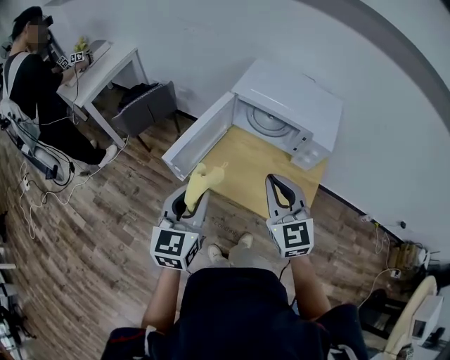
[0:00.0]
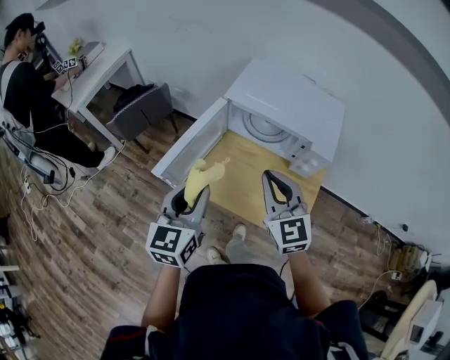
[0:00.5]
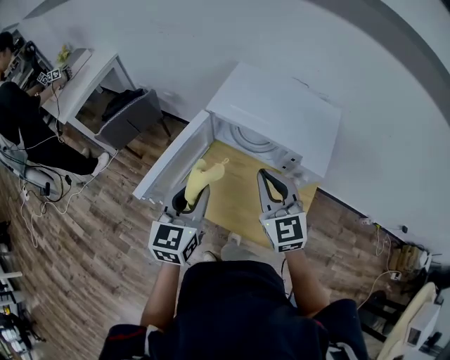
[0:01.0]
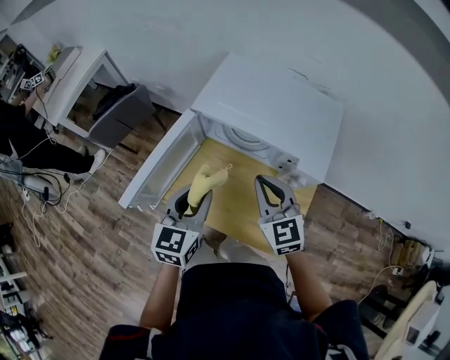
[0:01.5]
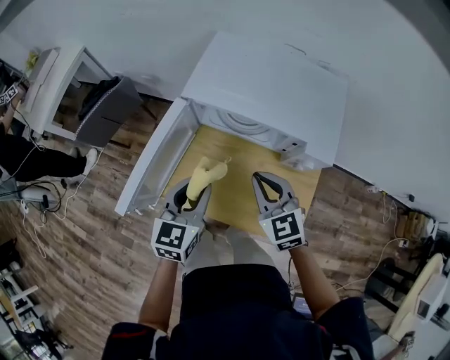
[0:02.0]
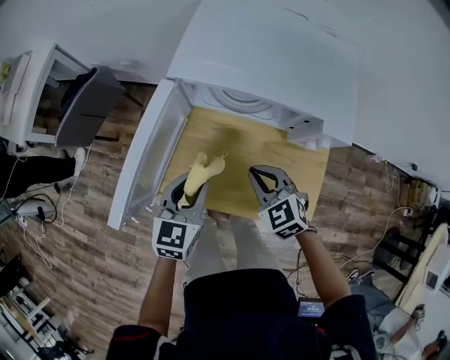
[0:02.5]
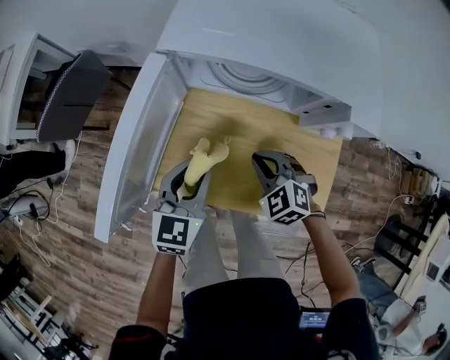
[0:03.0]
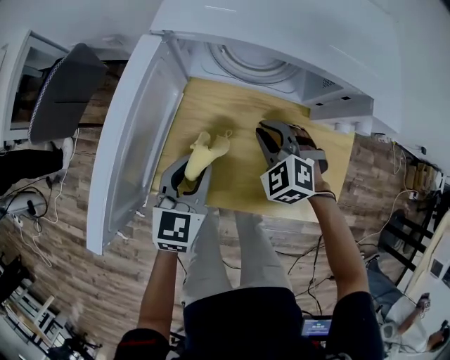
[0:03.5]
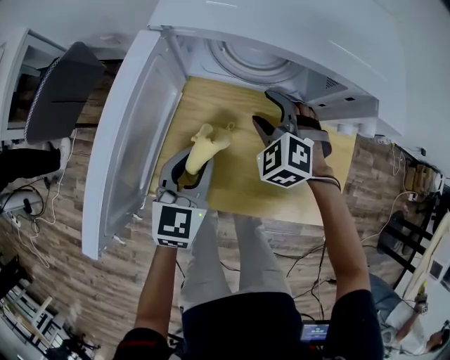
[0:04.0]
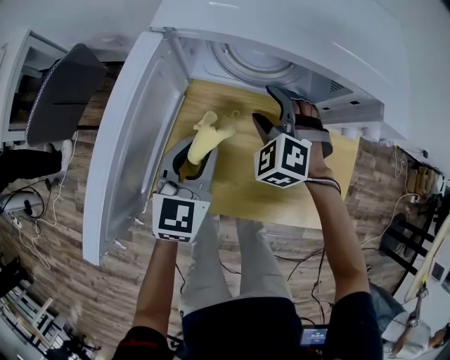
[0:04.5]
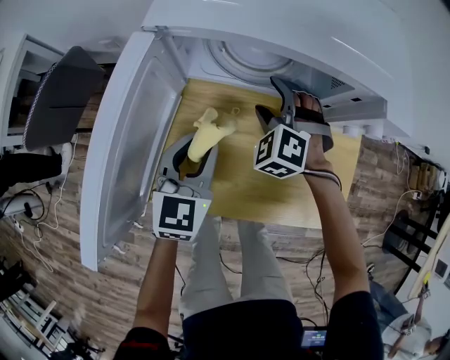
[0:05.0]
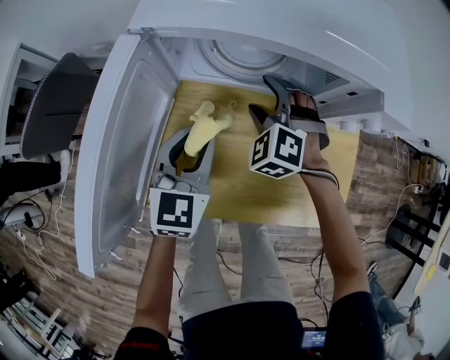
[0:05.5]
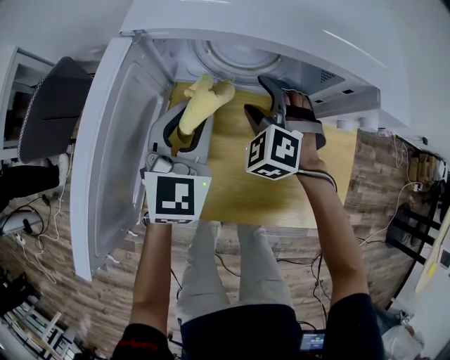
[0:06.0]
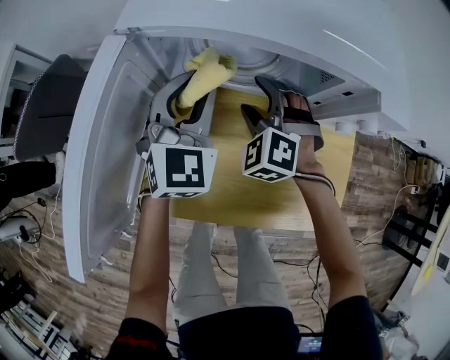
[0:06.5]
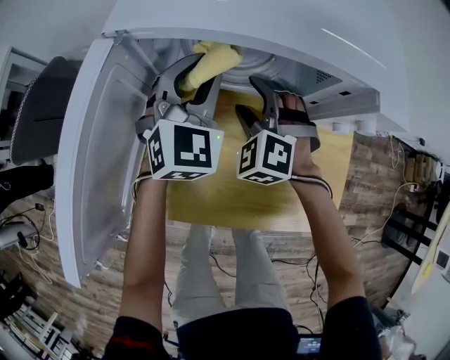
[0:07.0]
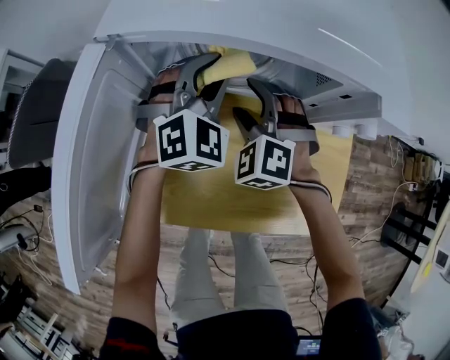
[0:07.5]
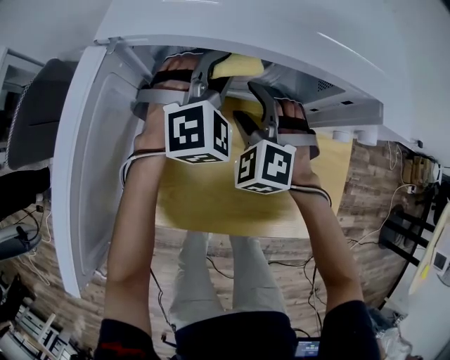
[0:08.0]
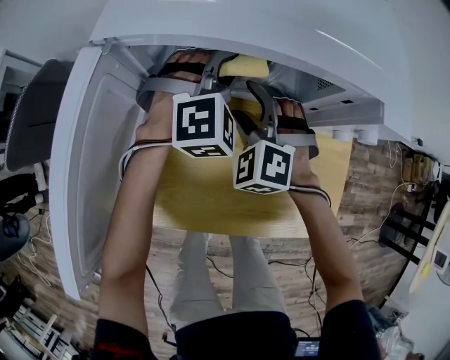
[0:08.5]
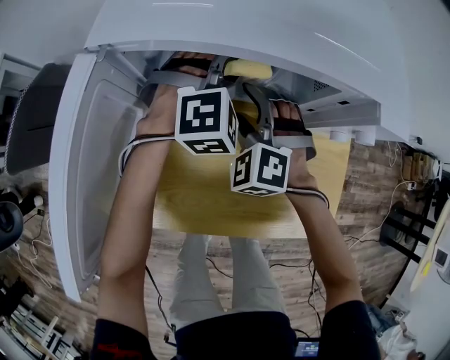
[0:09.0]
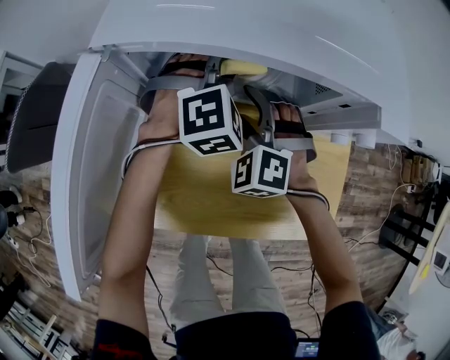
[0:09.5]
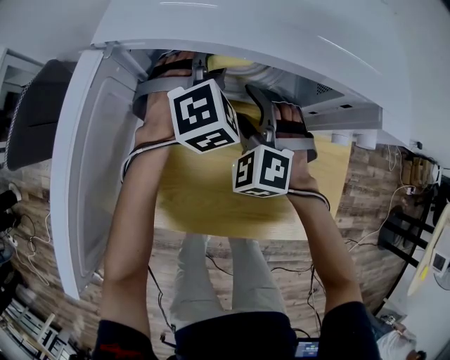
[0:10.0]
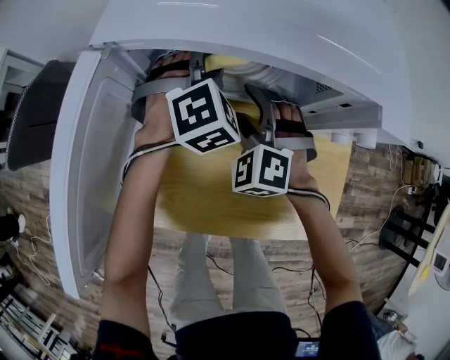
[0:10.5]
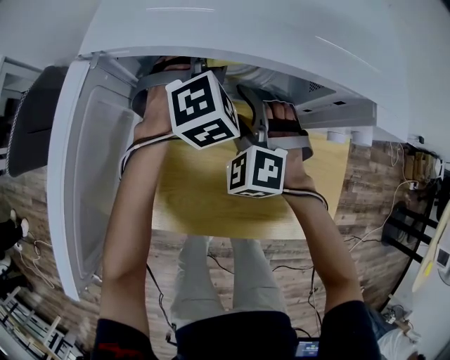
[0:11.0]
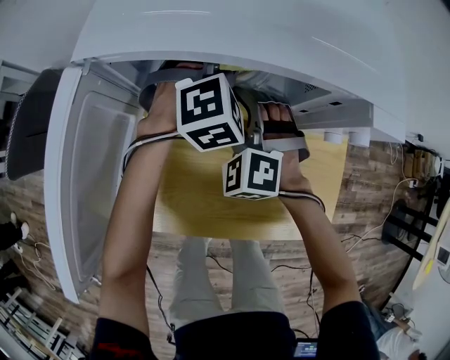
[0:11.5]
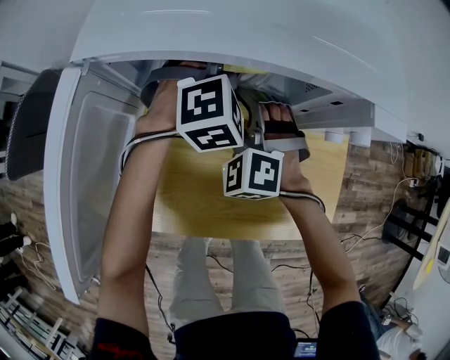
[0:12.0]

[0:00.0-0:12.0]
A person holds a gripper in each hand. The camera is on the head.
0:00.0 to 0:02.0: Both grippers move forward, downward and to the right, some 20 cm.
0:02.0 to 0:04.0: The right gripper shifts some 20 cm downward and forward, swivels about 40 degrees, and opens; the left gripper shifts roughly 15 cm downward.
0:04.0 to 0:06.0: The left gripper shifts approximately 10 cm forward.
0:06.0 to 0:08.0: The left gripper moves forward and to the right, roughly 15 cm, and rolls clockwise, seen from behind, by about 50 degrees.
0:08.0 to 0:10.0: The grippers make only small movements.
0:10.0 to 0:12.0: The left gripper shifts some 5 cm to the right.

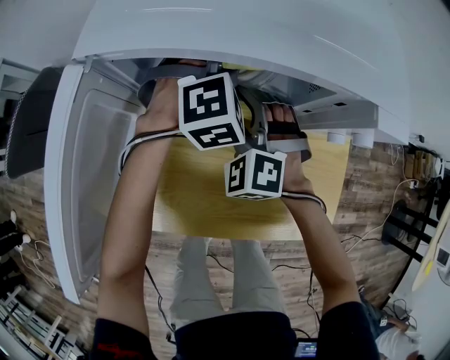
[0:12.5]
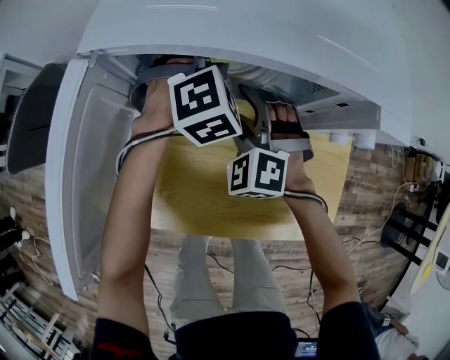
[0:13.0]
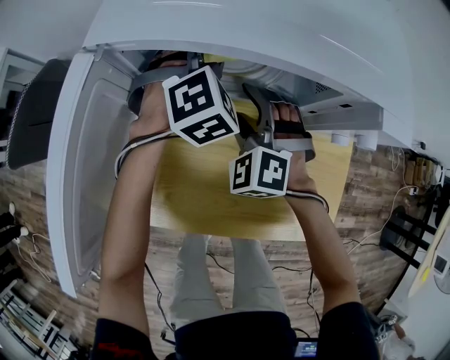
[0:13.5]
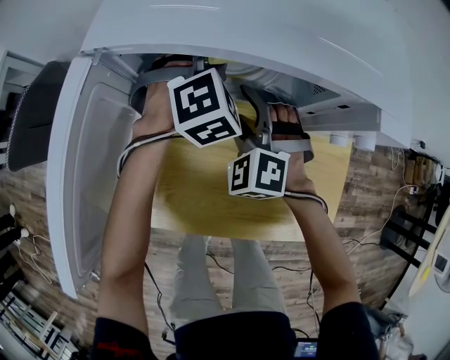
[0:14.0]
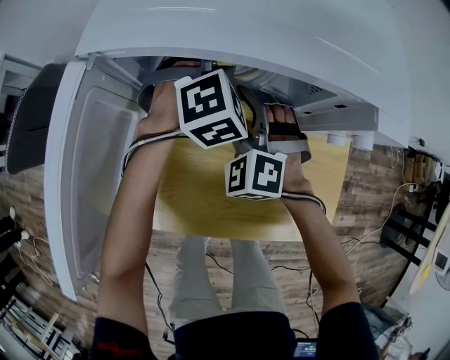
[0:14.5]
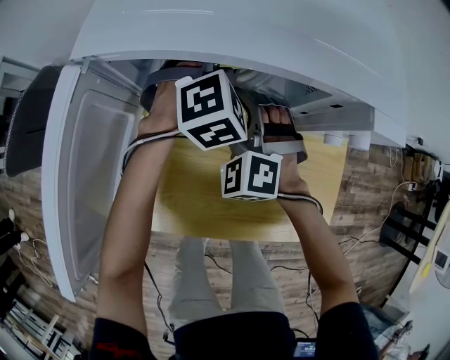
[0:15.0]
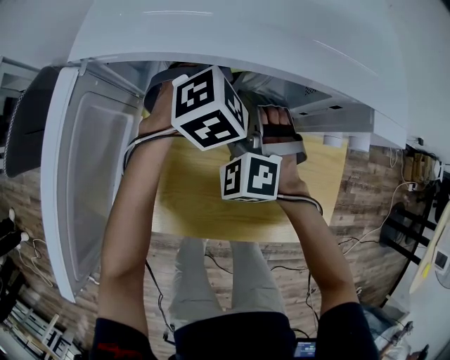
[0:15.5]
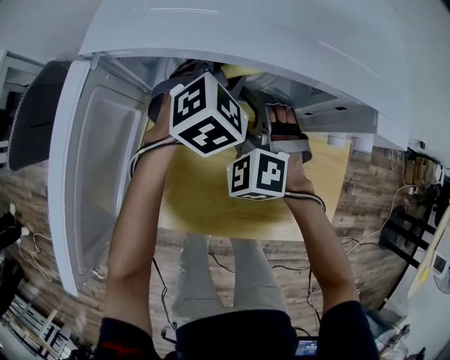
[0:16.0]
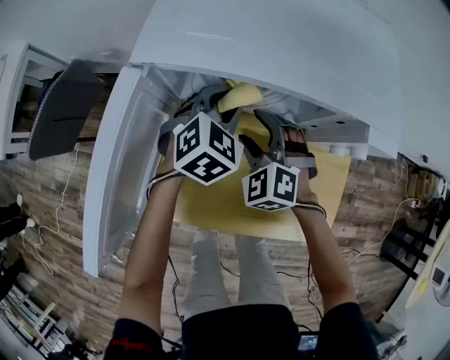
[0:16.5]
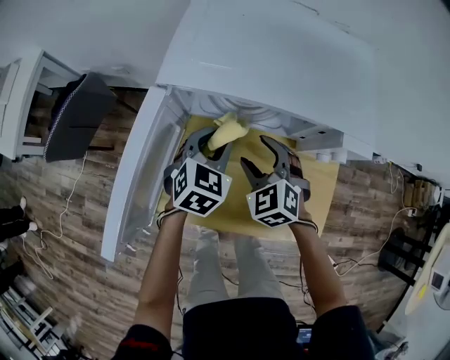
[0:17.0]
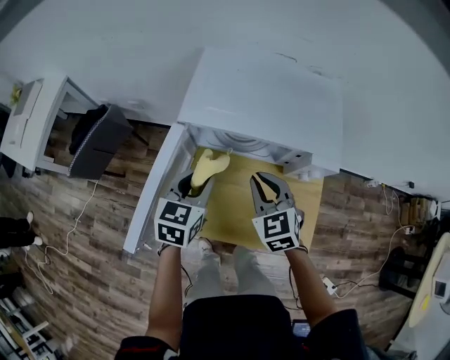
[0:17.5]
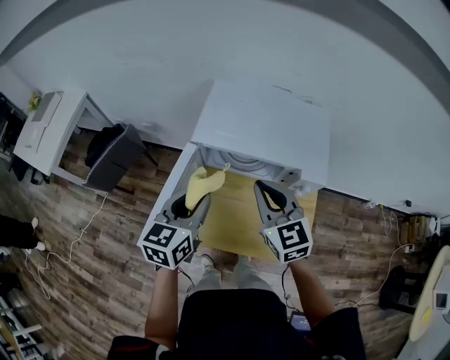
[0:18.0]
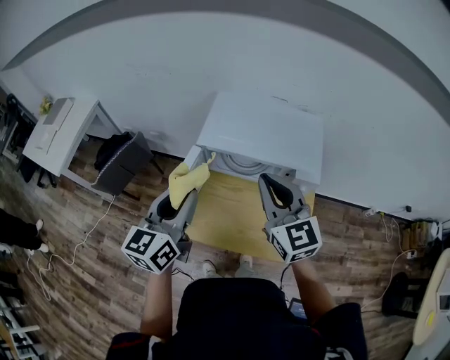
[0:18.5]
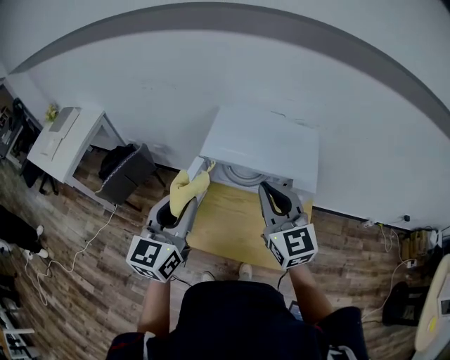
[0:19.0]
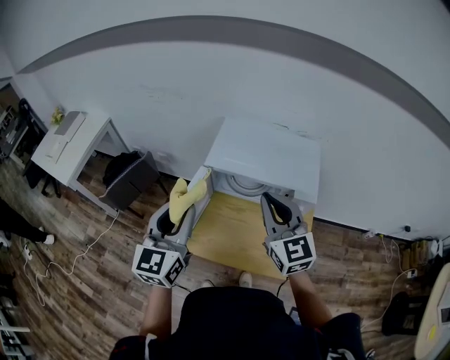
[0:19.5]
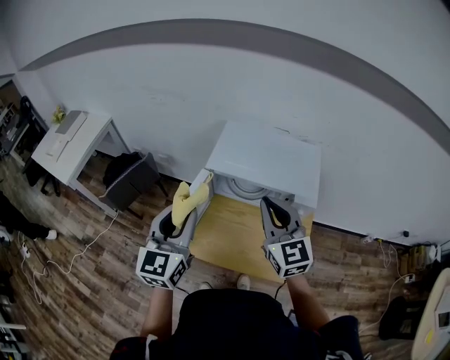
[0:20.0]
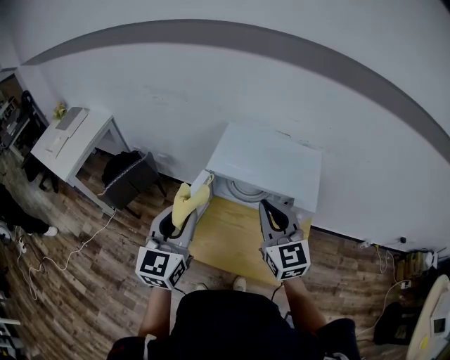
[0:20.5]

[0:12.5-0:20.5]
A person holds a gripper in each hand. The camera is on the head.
0:12.5 to 0:14.5: The grippers make only small movements.
0:14.5 to 0:16.5: The left gripper moves backward, some 5 cm, and turns by roughly 30 degrees.
0:16.5 to 0:18.5: The left gripper heads upward, backward and to the left, covering approximately 40 cm, and angles its fingers upward, by roughly 40 degrees. The right gripper goes about 40 cm upward, tips its fingers upward by about 40 degrees, and closes.
0:18.5 to 0:20.5: The grippers move only a little.

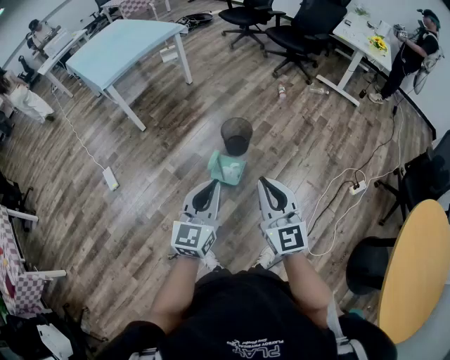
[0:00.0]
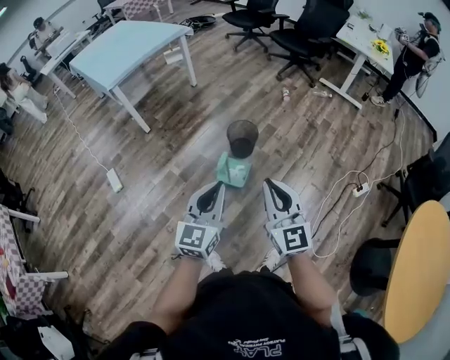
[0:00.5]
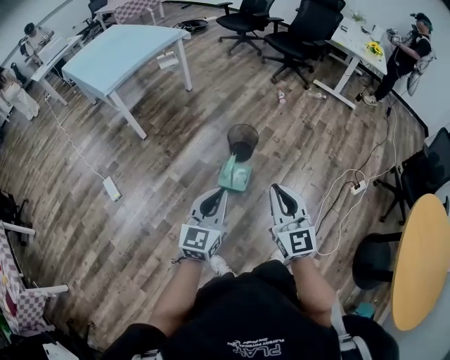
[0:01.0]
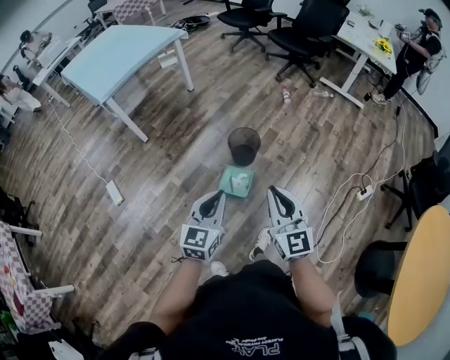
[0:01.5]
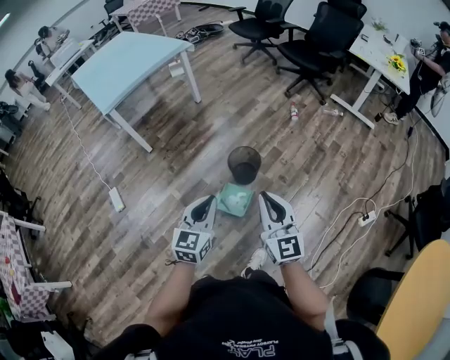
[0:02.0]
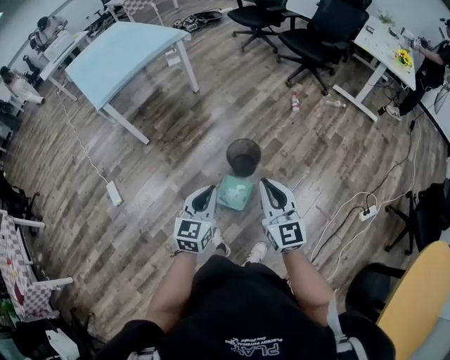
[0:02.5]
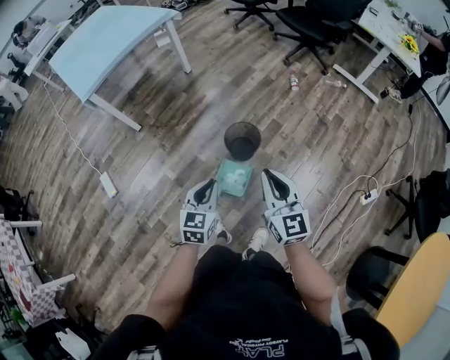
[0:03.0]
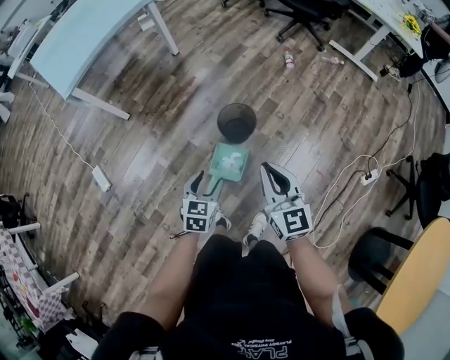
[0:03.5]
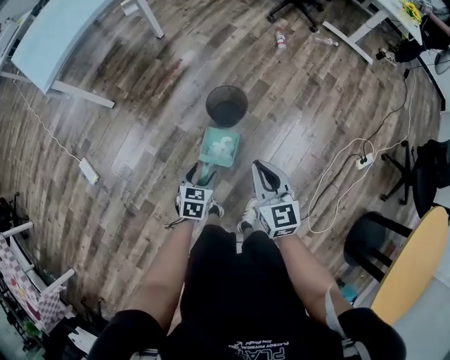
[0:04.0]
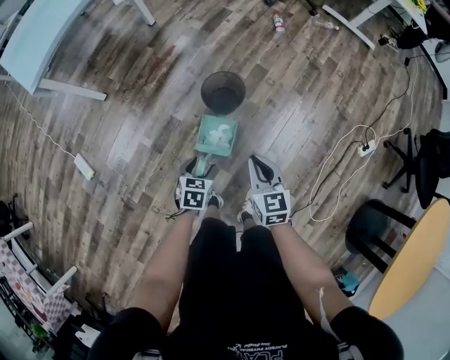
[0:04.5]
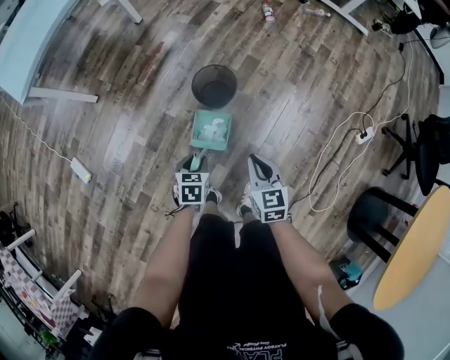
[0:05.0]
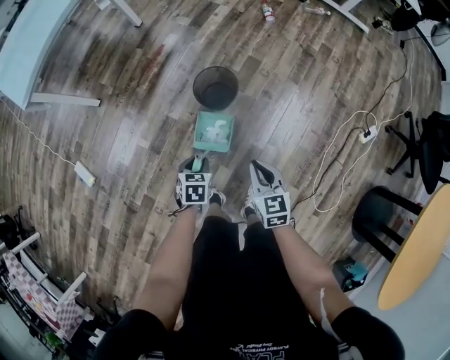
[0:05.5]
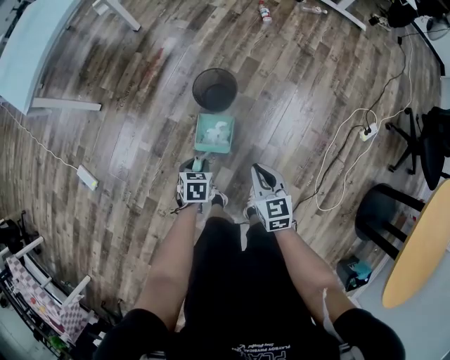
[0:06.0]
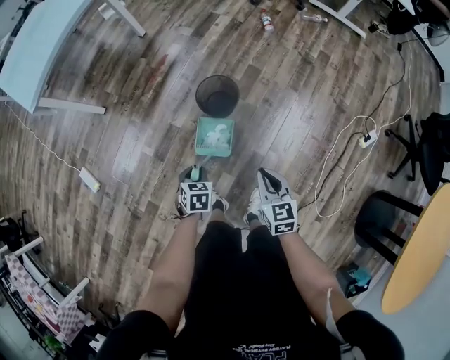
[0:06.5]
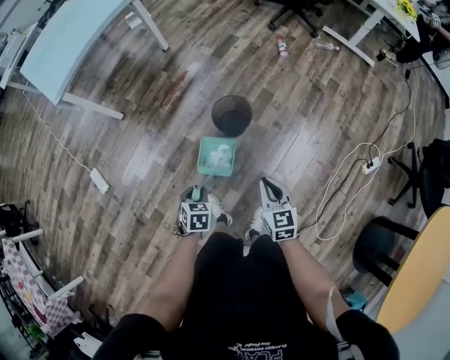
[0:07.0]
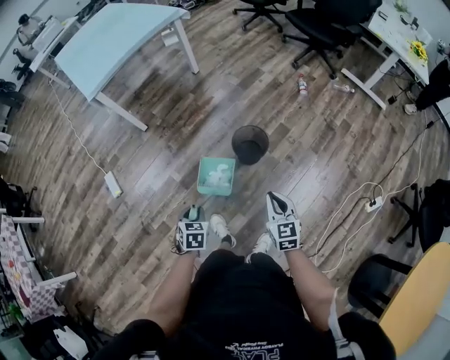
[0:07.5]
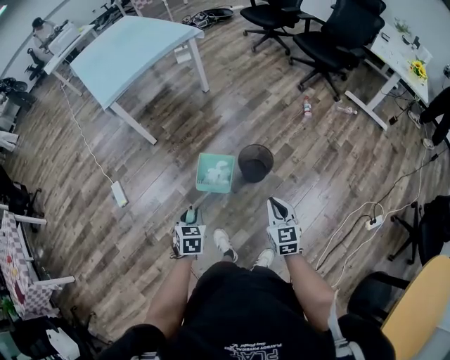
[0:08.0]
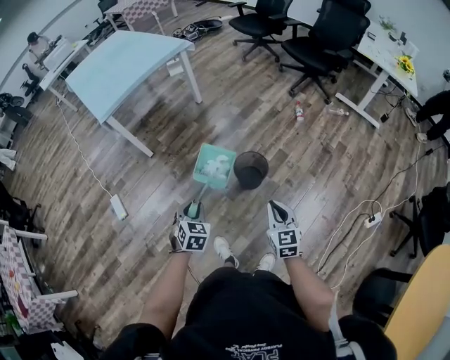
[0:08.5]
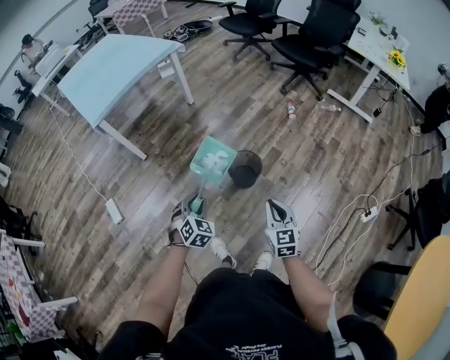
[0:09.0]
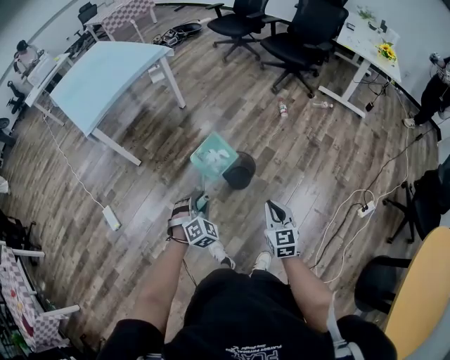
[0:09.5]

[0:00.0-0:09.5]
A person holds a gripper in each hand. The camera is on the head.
0:00.0 to 0:02.0: The grippers both shift forward by some 20 cm.
0:02.0 to 0:04.0: The left gripper moves downward, some 30 cm, points its fingers roughly 30 degrees further downward, and opens its fingers; the right gripper shifts about 20 cm downward and forward, and changes its angle by about 20 degrees.
0:04.0 to 0:05.5: The right gripper travels downward by approximately 15 cm. The left gripper shifts about 5 cm downward, and closes its fingers.
0:05.5 to 0:07.5: The left gripper shifts roughly 20 cm upward, to the left and backward. The right gripper goes some 10 cm upward.
0:07.5 to 0:09.5: The left gripper travels upward, to the right and forward by approximately 15 cm, and twists roughly 60 degrees clockwise, seen from behind. The right gripper goes approximately 5 cm upward.
